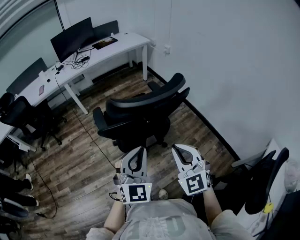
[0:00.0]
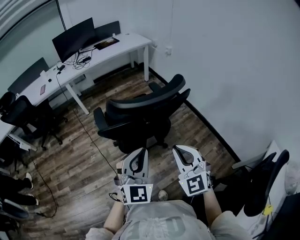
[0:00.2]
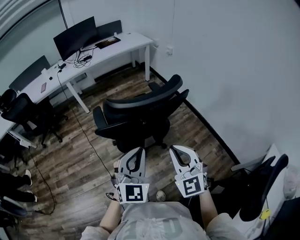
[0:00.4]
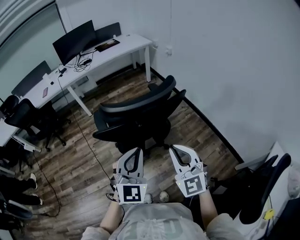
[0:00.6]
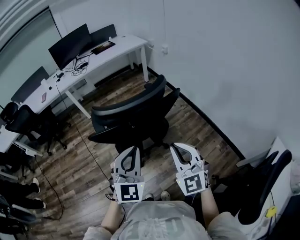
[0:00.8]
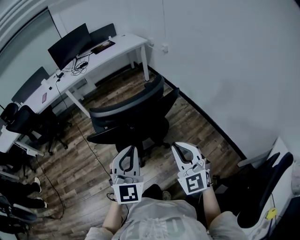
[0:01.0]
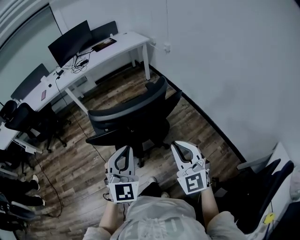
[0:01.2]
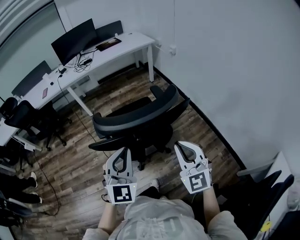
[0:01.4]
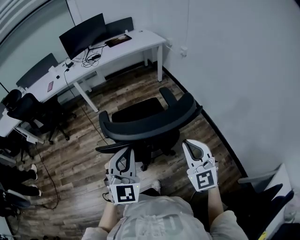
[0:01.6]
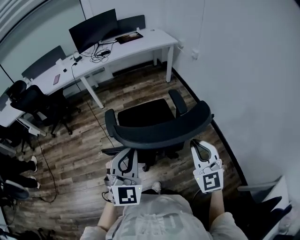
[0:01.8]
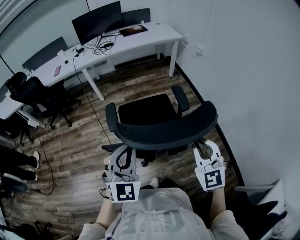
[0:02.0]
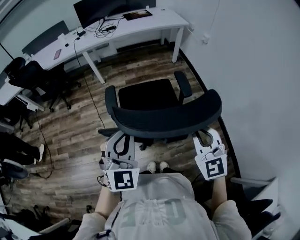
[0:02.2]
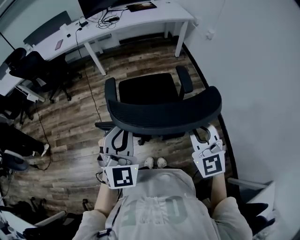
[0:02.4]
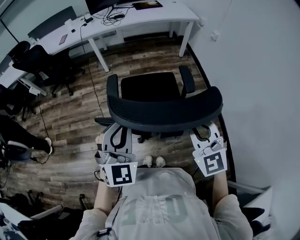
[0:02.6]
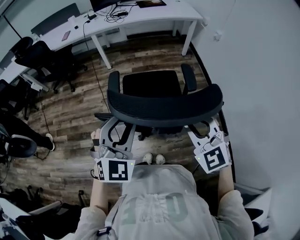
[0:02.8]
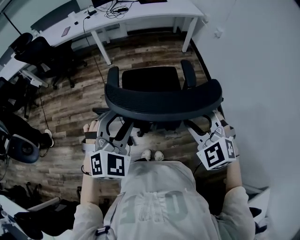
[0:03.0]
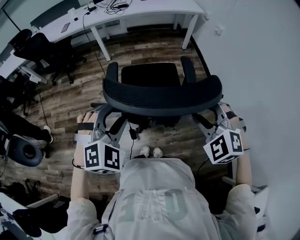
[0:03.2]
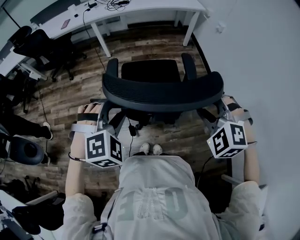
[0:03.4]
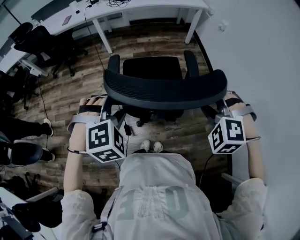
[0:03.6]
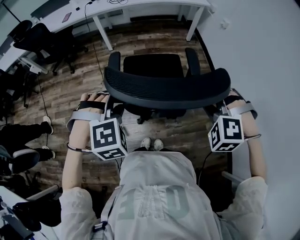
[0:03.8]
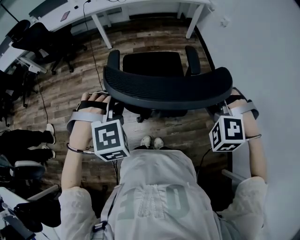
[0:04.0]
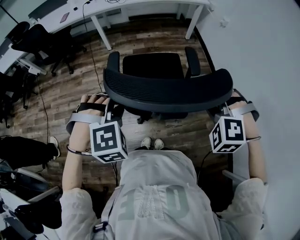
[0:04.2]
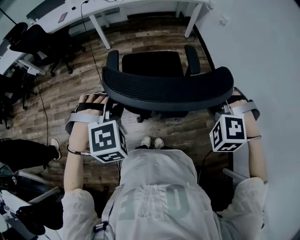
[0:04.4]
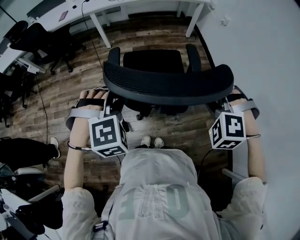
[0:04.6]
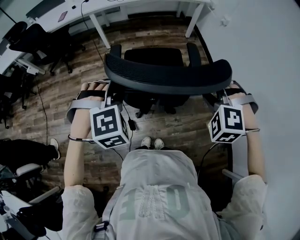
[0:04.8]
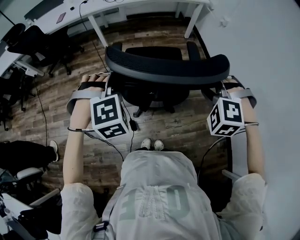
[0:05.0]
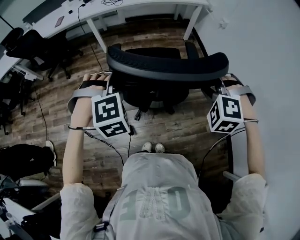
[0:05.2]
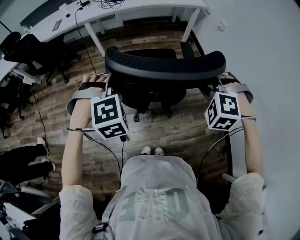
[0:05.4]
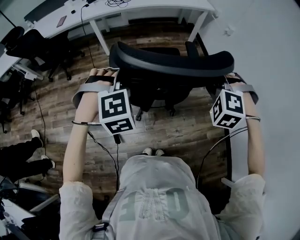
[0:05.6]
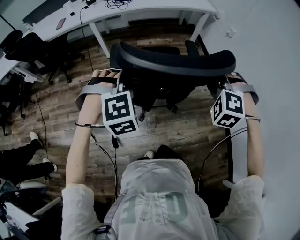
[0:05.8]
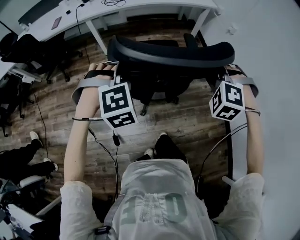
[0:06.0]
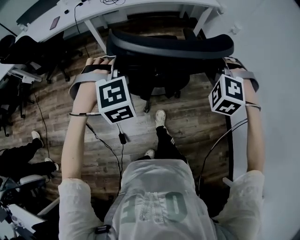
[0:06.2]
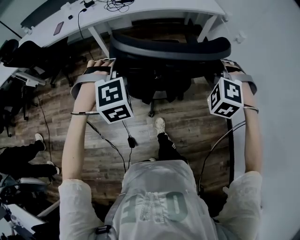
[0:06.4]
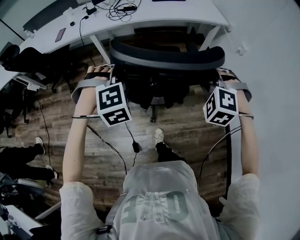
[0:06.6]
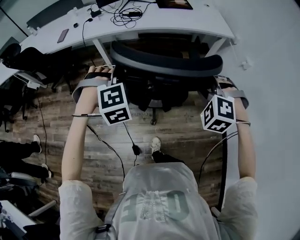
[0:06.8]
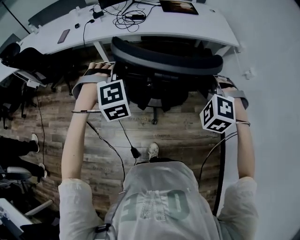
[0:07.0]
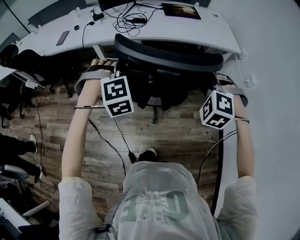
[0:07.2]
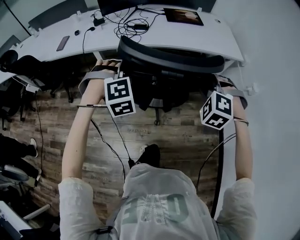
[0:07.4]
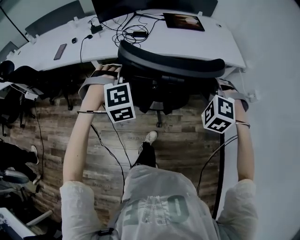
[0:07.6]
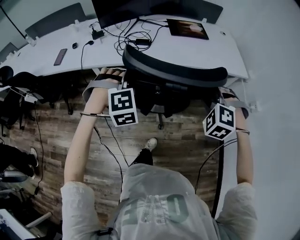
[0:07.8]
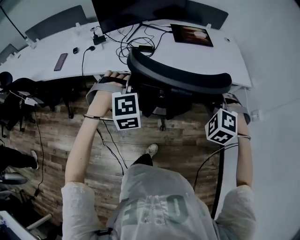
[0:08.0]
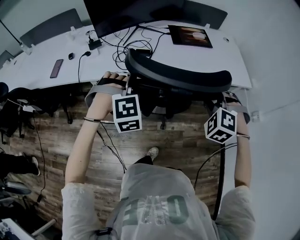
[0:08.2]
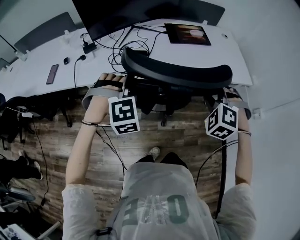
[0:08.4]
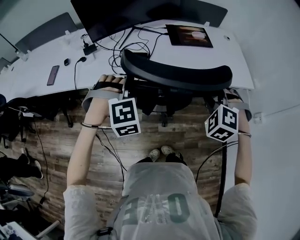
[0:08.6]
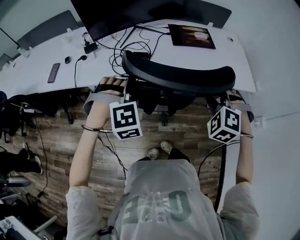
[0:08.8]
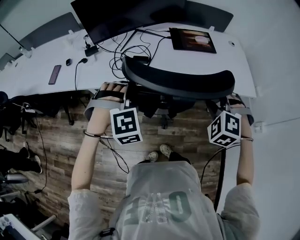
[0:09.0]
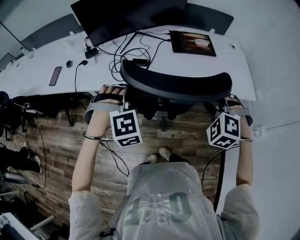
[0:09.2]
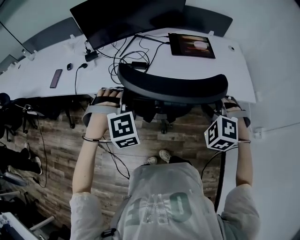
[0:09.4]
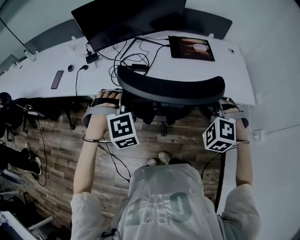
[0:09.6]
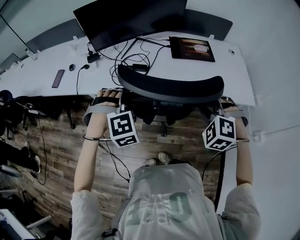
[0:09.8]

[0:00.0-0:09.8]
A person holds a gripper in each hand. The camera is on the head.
0:00.0 to 0:01.4: The right gripper shifts about 10 cm forward and to the right. The left gripper is displaced forward by some 5 cm.
0:01.4 to 0:02.8: The left gripper moves forward, roughly 5 cm, and opens its fingers, while the right gripper heads forward, covering approximately 10 cm, and turns by roughly 30 degrees.
0:02.8 to 0:04.2: The left gripper moves downward, about 5 cm, and points its fingers some 40 degrees further downward. Meanwhile the right gripper travels to the right by roughly 5 cm, points its fingers about 30 degrees further downward, and opens up.
0:04.2 to 0:05.6: The two grippers go some 20 cm forward.
0:05.6 to 0:07.0: The grippers both shift forward by some 35 cm.
0:07.0 to 0:08.4: The two grippers go some 35 cm forward.
0:08.4 to 0:09.8: The grippers stay close to where they were, moving slightly.

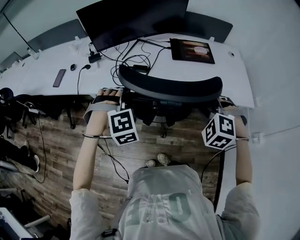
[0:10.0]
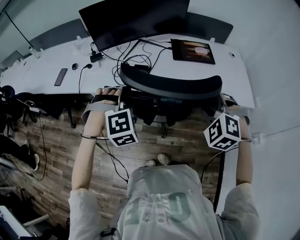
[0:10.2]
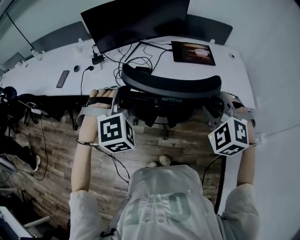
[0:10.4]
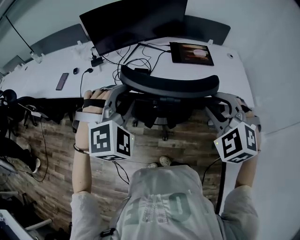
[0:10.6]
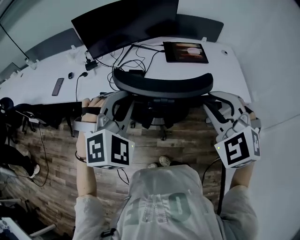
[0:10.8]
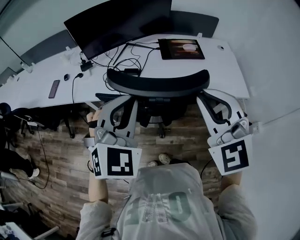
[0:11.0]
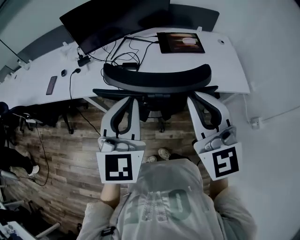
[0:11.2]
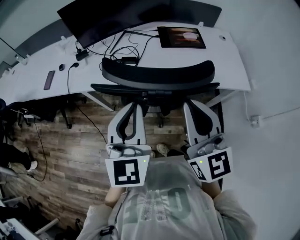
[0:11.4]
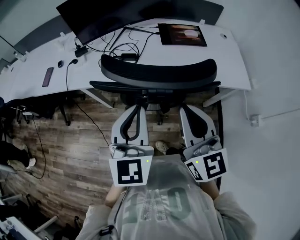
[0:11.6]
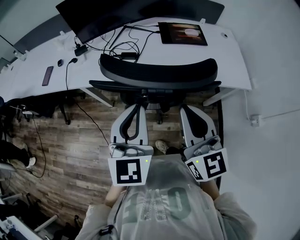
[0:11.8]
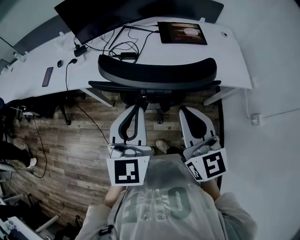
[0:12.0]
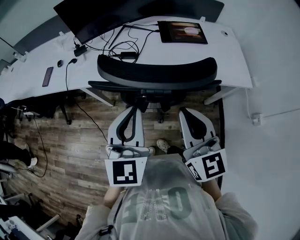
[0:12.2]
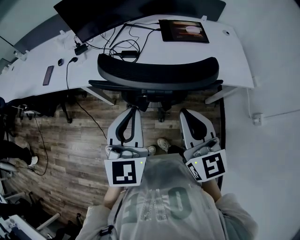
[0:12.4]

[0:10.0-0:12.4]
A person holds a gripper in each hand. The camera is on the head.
0:10.0 to 0:11.2: The right gripper shifts approximately 20 cm upward, points its fingers approximately 50 degrees further upward, and closes up; the left gripper travels upward and backward by about 20 cm, tips its fingers upward by approximately 40 degrees, and closes up.
0:11.2 to 0:12.4: The two grippers go approximately 10 cm downward.

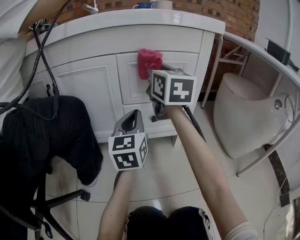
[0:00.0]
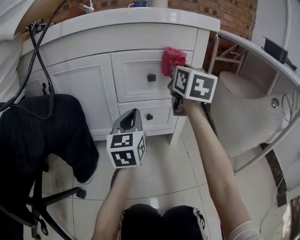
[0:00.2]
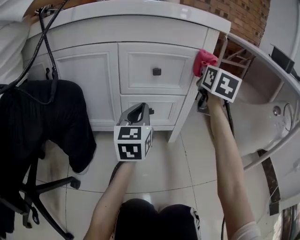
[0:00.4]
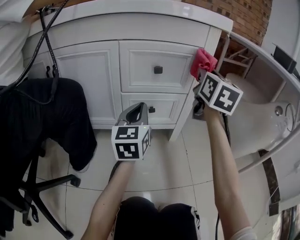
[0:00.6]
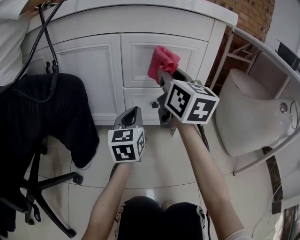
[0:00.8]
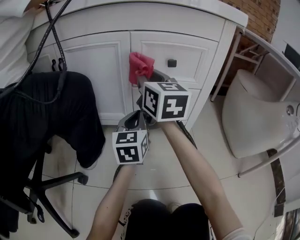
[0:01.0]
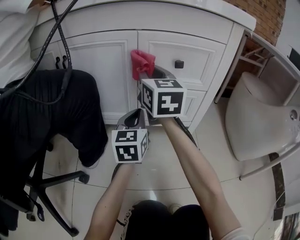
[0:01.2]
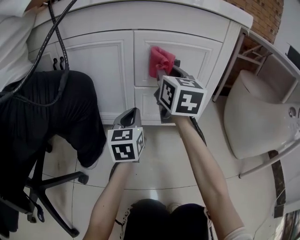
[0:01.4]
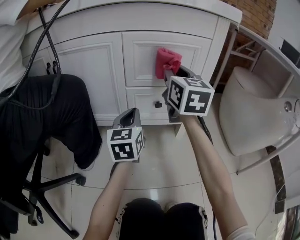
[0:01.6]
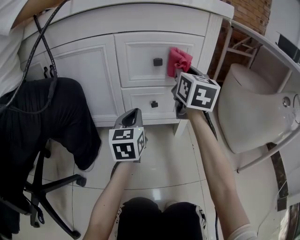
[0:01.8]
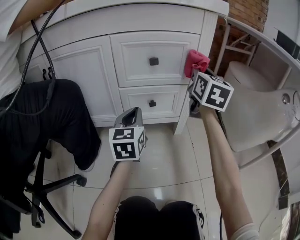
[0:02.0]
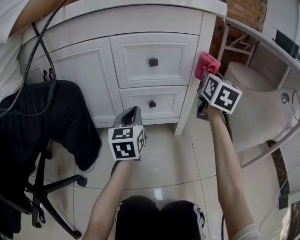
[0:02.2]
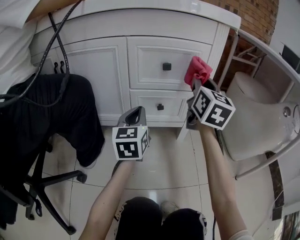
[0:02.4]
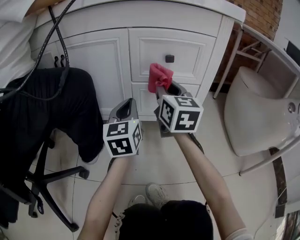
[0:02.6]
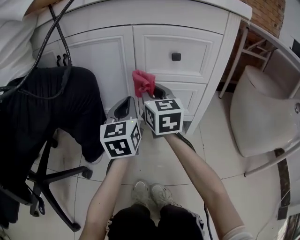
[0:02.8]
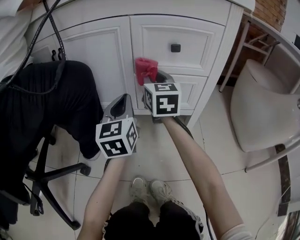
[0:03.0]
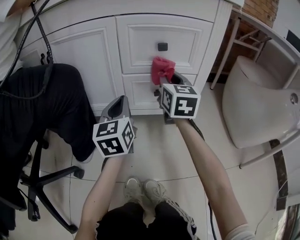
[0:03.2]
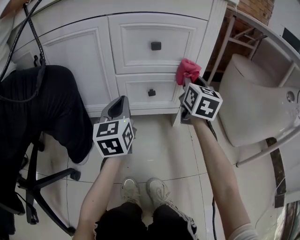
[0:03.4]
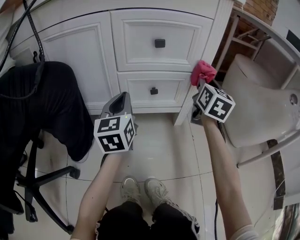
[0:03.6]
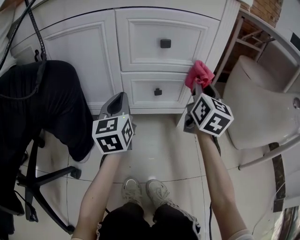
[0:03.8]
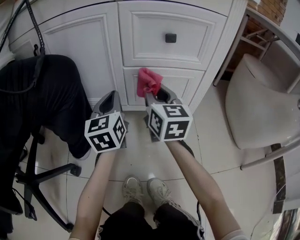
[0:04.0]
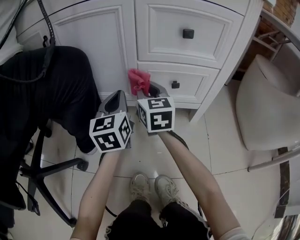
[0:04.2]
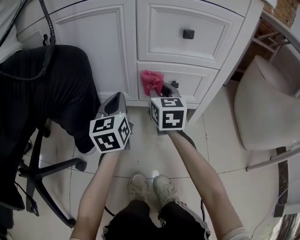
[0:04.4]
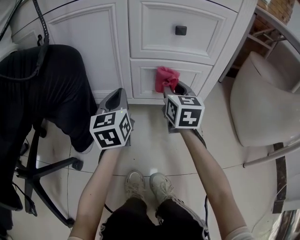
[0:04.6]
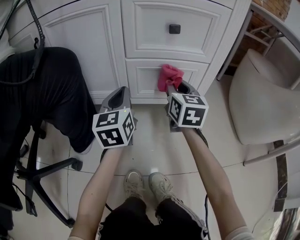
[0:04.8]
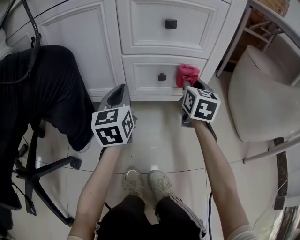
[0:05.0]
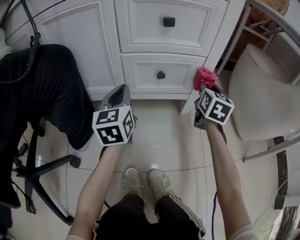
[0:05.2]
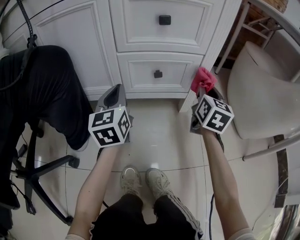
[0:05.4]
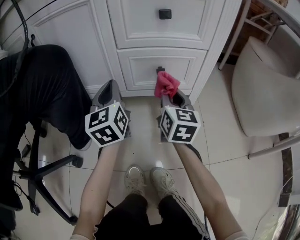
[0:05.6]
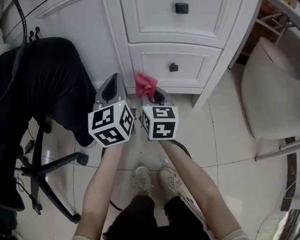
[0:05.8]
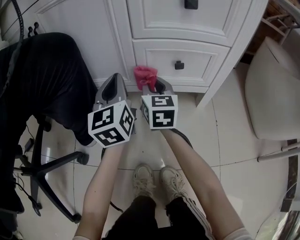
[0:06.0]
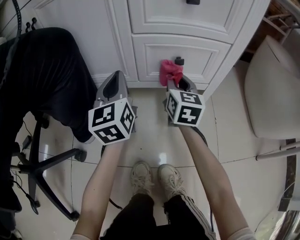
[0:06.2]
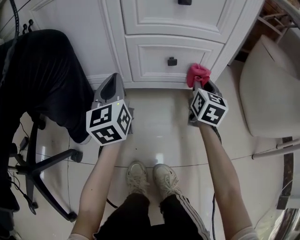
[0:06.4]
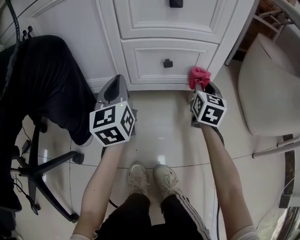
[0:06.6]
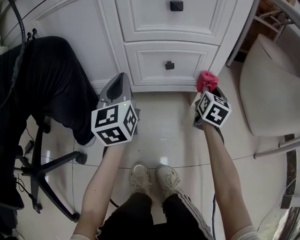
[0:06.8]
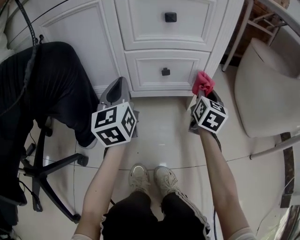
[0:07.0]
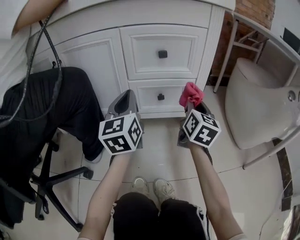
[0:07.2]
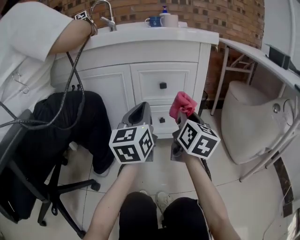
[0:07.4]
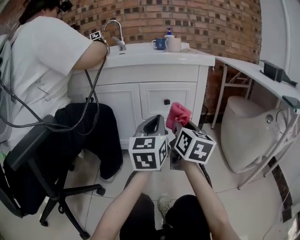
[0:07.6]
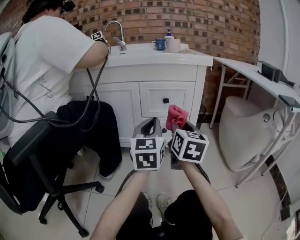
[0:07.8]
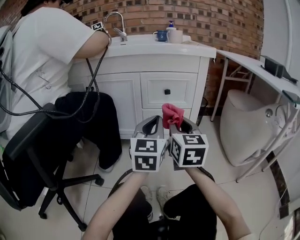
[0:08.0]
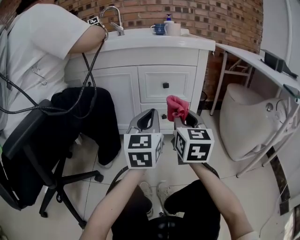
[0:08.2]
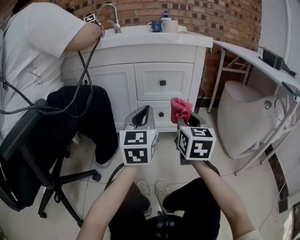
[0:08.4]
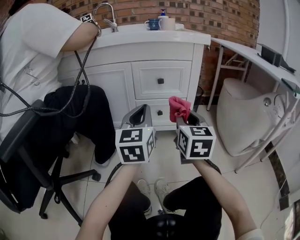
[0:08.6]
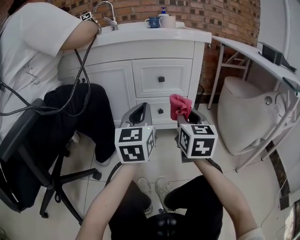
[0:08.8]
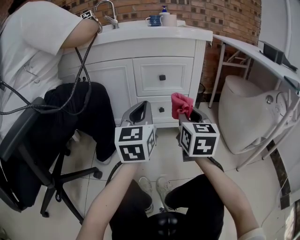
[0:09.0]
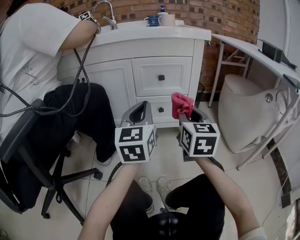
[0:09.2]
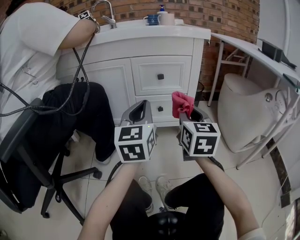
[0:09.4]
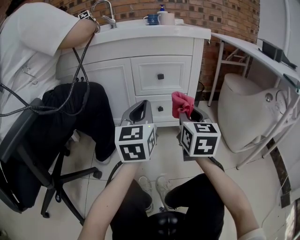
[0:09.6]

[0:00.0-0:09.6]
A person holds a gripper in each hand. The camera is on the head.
0:00.0 to 0:01.6: The left gripper shifts roughly 10 cm downward. Meanwhile the right gripper moves left and right over about 30 cm, changing direction 2 times.
0:01.6 to 0:03.2: The right gripper moves left and right over some 30 cm, changing direction 2 times.
0:03.2 to 0:04.8: The left gripper travels to the left and back again, roughly 5 cm each way, while the right gripper goes left and right, about 30 cm each way, reversing 2 times.
0:04.8 to 0:06.4: The right gripper goes left and right, some 30 cm each way, reversing 2 times.
0:06.4 to 0:08.0: The left gripper travels upward, backward and to the right by roughly 35 cm. Meanwhile the right gripper shifts approximately 40 cm upward and backward.
0:08.0 to 0:09.6: The right gripper moves to the right, about 5 cm.

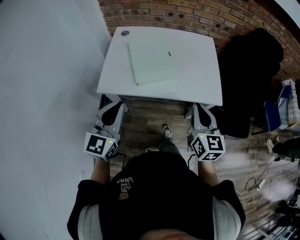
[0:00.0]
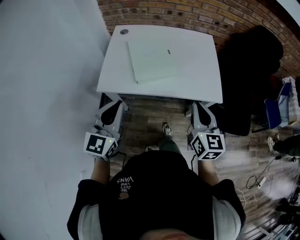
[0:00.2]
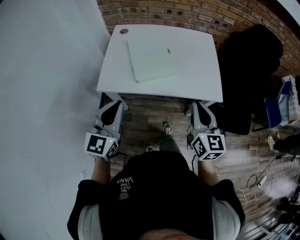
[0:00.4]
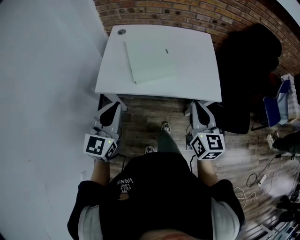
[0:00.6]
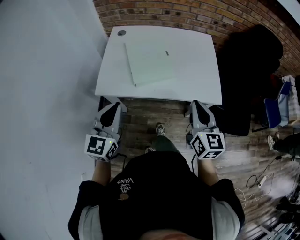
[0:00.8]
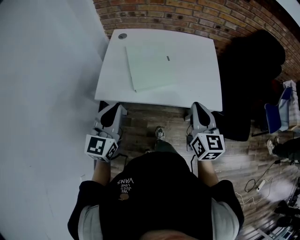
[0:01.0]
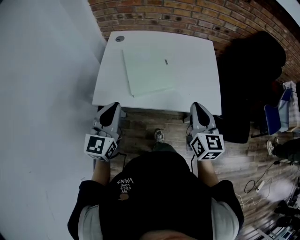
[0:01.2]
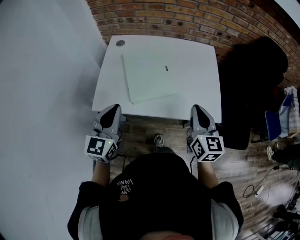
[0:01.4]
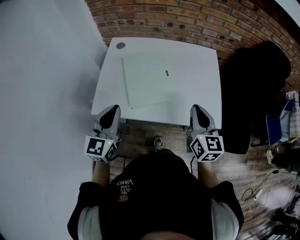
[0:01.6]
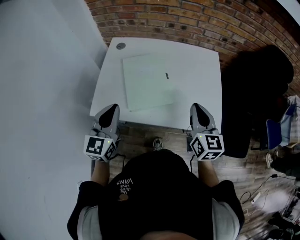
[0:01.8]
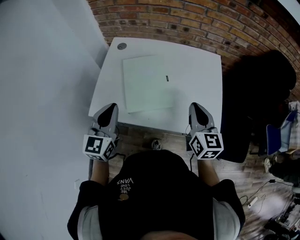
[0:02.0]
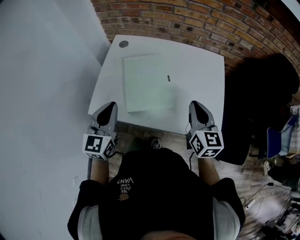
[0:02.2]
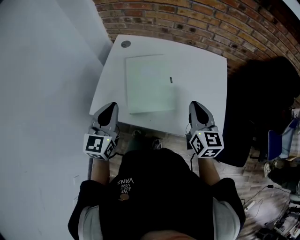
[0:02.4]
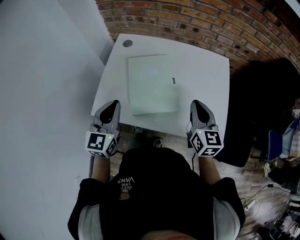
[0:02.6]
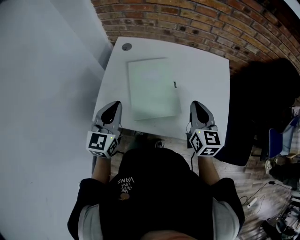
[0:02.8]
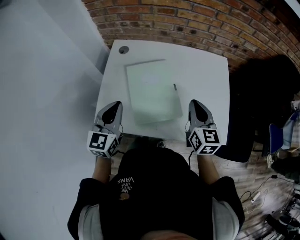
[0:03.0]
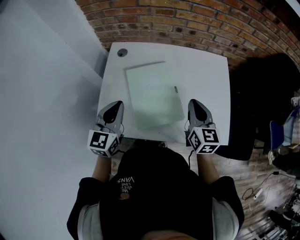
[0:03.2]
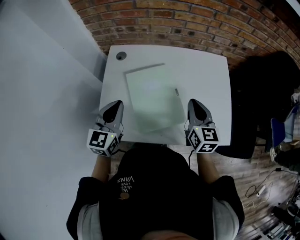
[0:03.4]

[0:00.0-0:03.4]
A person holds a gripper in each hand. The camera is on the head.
0:00.0 to 0:01.6: Both grippers travel together forward, some 15 cm.
0:01.6 to 0:03.4: Both grippers move forward, approximately 15 cm.
